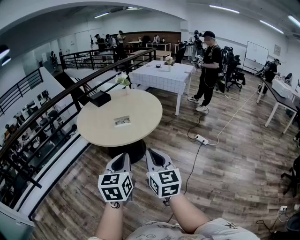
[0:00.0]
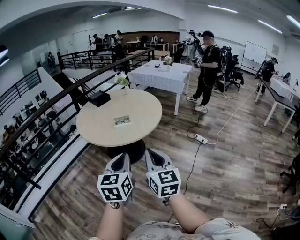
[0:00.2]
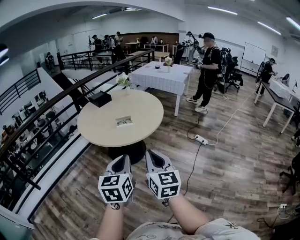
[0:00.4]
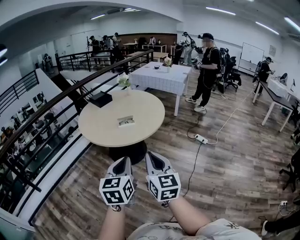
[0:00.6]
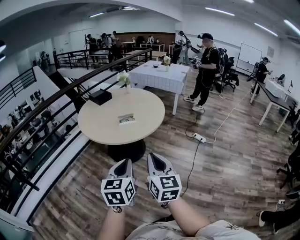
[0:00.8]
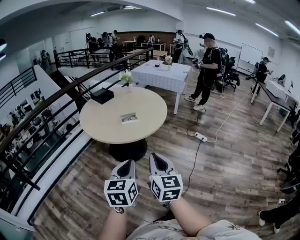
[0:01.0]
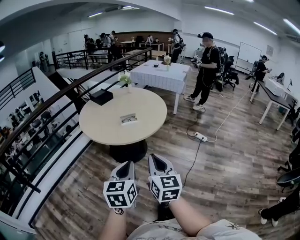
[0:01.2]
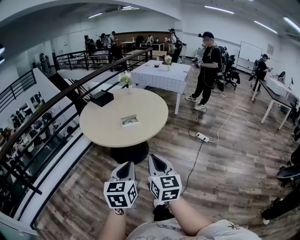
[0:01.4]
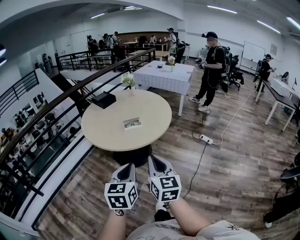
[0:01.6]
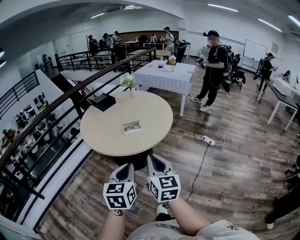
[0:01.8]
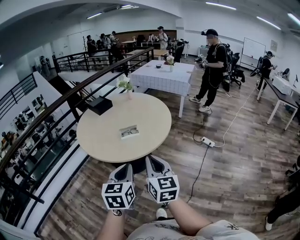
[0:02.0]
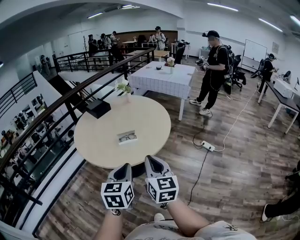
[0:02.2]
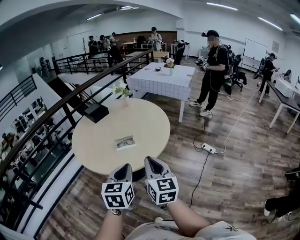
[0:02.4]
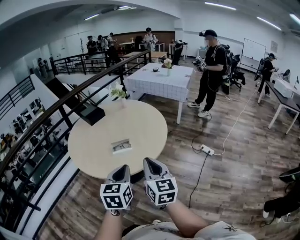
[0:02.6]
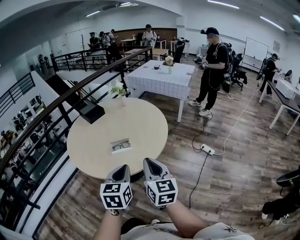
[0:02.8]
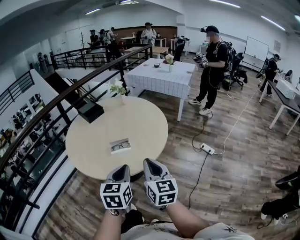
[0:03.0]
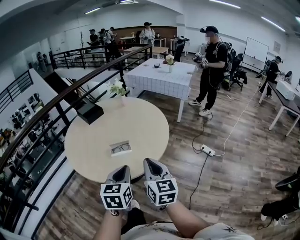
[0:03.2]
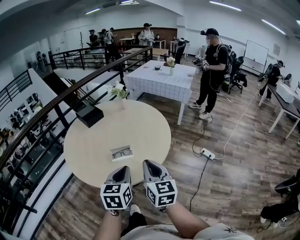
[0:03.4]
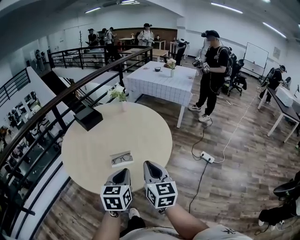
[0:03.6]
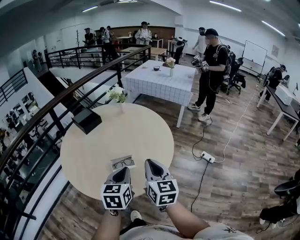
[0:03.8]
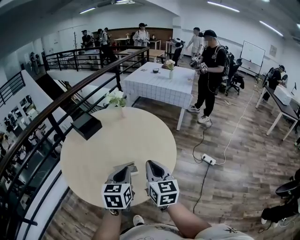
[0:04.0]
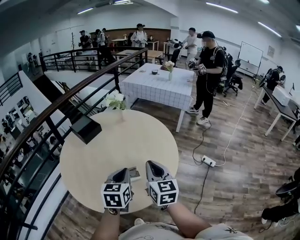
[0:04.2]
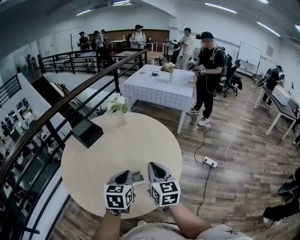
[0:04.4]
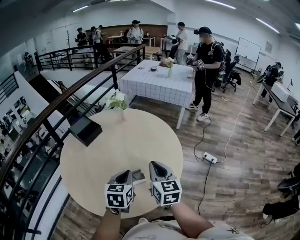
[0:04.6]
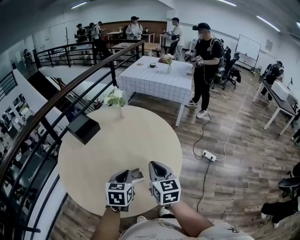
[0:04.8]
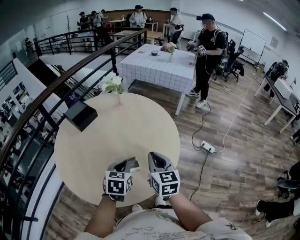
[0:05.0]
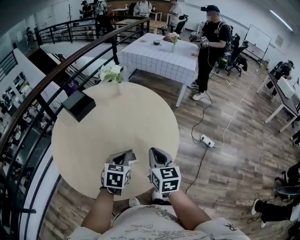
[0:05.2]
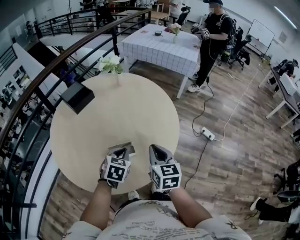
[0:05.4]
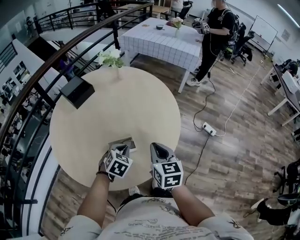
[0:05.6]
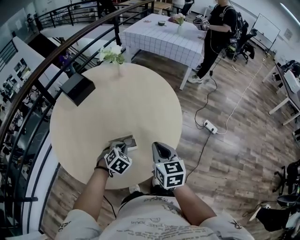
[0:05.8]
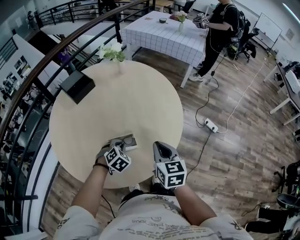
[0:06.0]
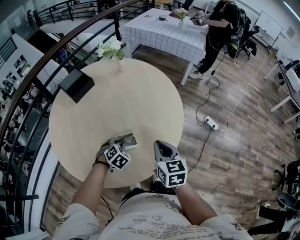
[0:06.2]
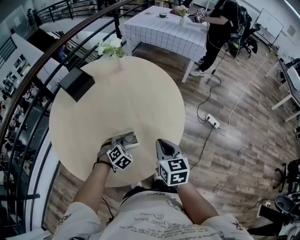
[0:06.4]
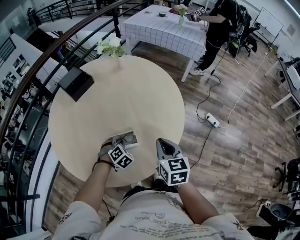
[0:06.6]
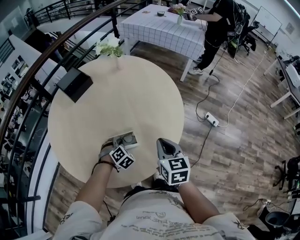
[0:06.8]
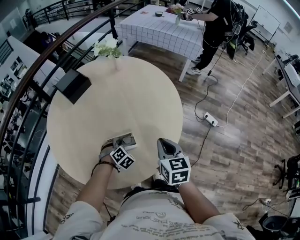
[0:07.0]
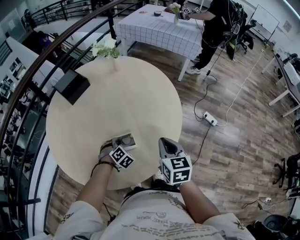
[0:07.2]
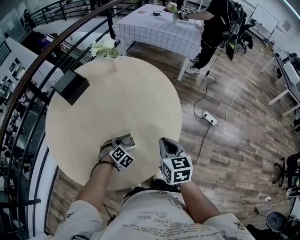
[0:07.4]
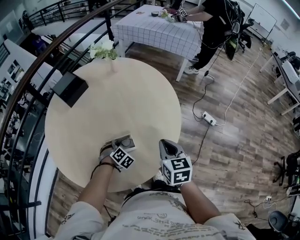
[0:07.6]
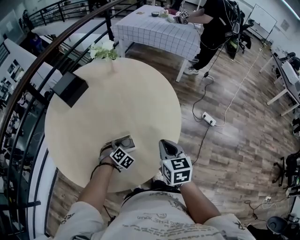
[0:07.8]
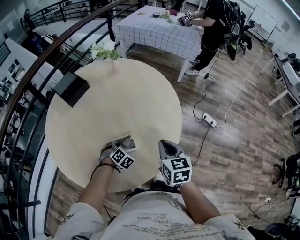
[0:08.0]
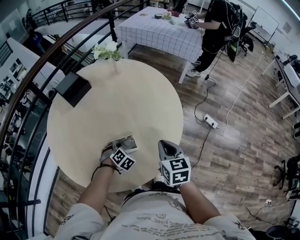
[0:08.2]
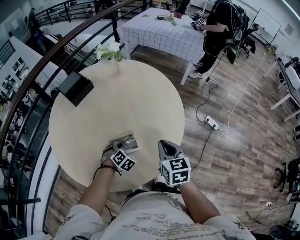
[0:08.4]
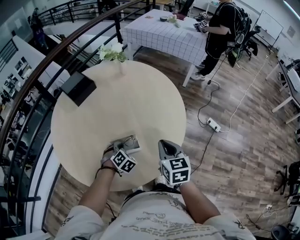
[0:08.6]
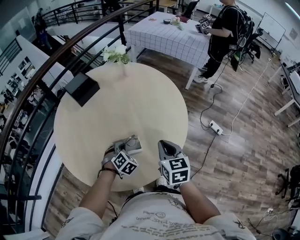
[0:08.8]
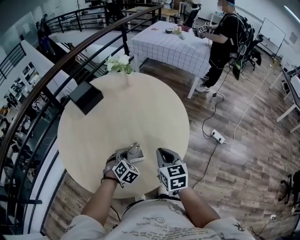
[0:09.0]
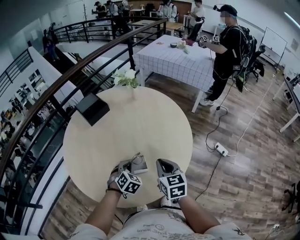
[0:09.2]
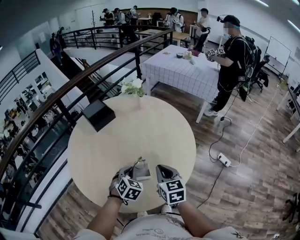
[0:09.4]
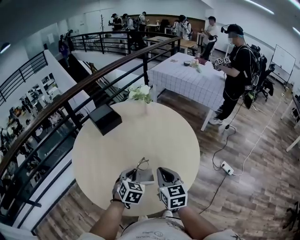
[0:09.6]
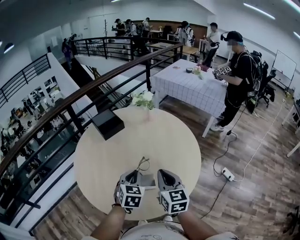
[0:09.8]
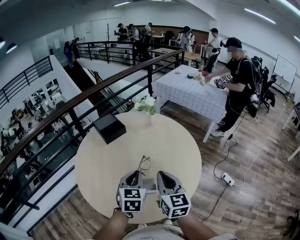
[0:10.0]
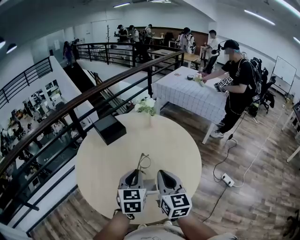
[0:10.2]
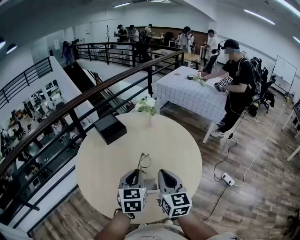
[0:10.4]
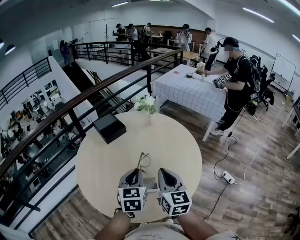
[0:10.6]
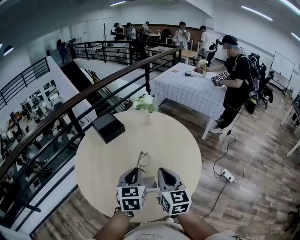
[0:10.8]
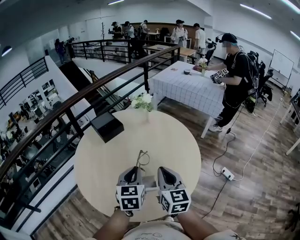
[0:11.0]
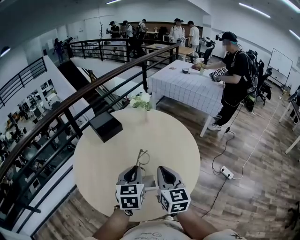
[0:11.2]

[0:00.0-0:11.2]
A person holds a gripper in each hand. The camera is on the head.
0:00.0 to 0:01.6: The left gripper is displaced to the left and downward by about 15 cm. The right gripper is displaced to the left by roughly 10 cm.
0:01.6 to 0:03.2: Both grippers move forward, roughly 30 cm.
0:03.2 to 0:04.8: The left gripper is displaced forward and to the left by about 25 cm, while the right gripper heads forward, covering roughly 25 cm.
0:04.8 to 0:06.4: The left gripper travels downward by some 20 cm, and twists some 40 degrees clockwise, seen from behind, while the right gripper goes approximately 10 cm downward and to the right.
0:06.4 to 0:08.0: The left gripper ends up approximately 5 cm from where it was.
0:08.0 to 0:09.6: The right gripper goes some 10 cm to the left and upward; the left gripper is displaced upward by about 20 cm, and changes its angle by about 40 degrees.
0:09.6 to 0:11.2: The right gripper shifts roughly 5 cm upward. The left gripper travels upward by some 10 cm, and swivels roughly 30 degrees.

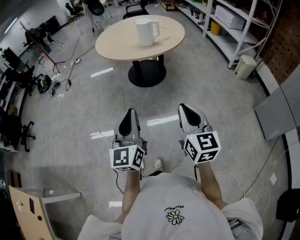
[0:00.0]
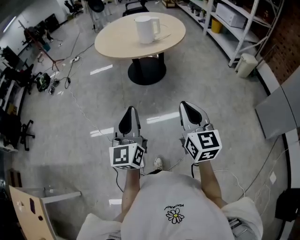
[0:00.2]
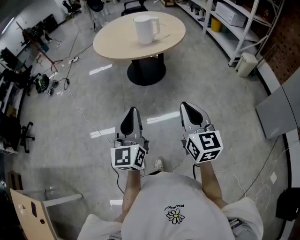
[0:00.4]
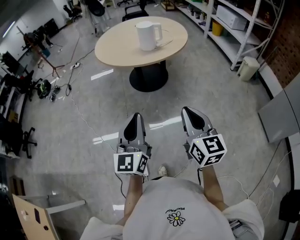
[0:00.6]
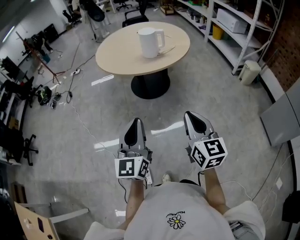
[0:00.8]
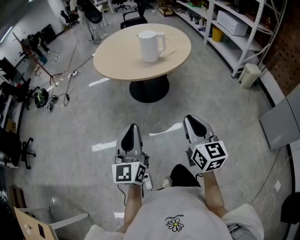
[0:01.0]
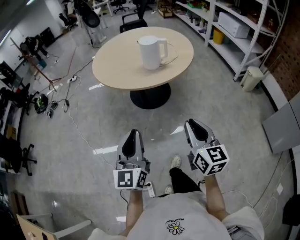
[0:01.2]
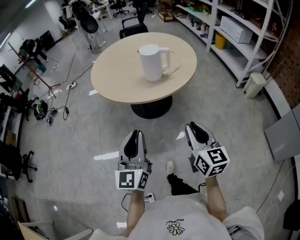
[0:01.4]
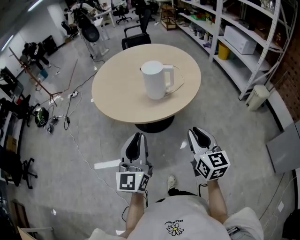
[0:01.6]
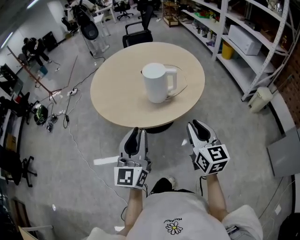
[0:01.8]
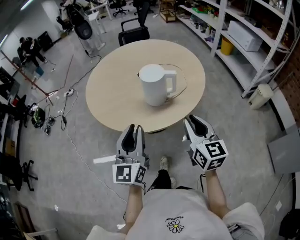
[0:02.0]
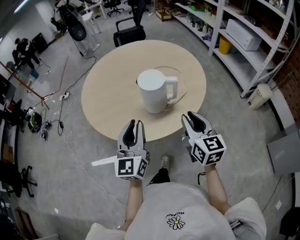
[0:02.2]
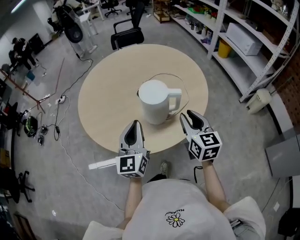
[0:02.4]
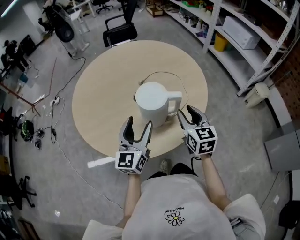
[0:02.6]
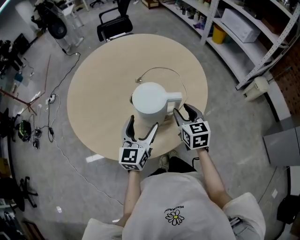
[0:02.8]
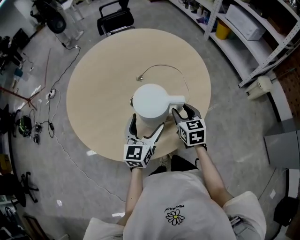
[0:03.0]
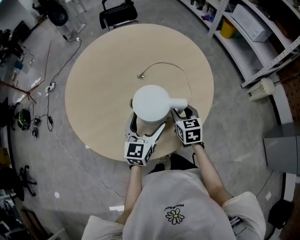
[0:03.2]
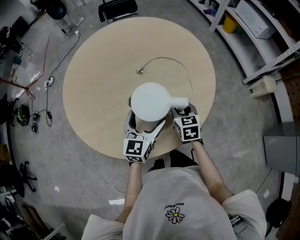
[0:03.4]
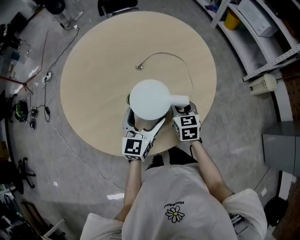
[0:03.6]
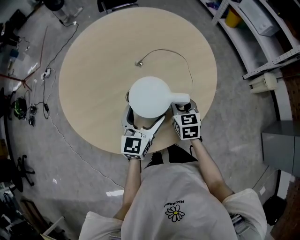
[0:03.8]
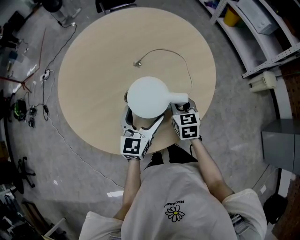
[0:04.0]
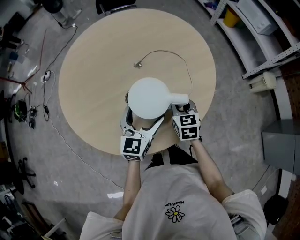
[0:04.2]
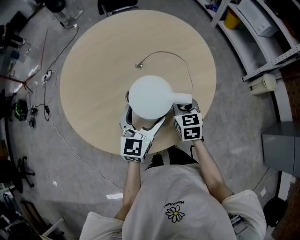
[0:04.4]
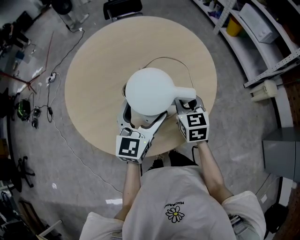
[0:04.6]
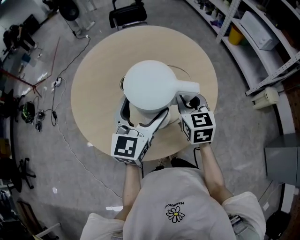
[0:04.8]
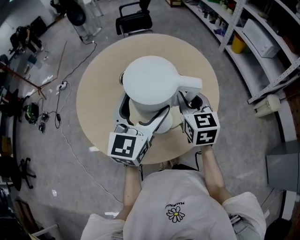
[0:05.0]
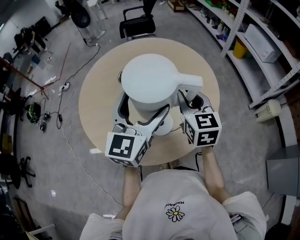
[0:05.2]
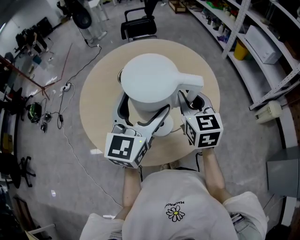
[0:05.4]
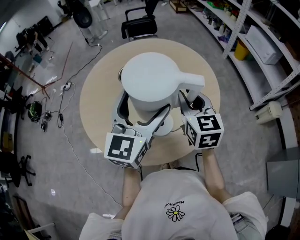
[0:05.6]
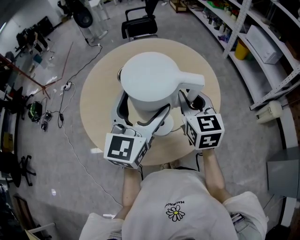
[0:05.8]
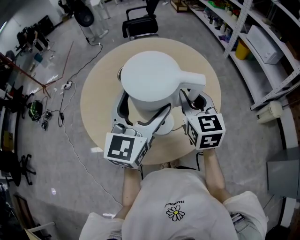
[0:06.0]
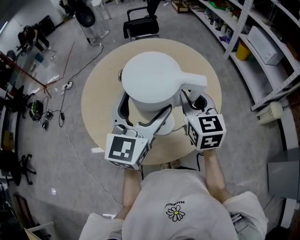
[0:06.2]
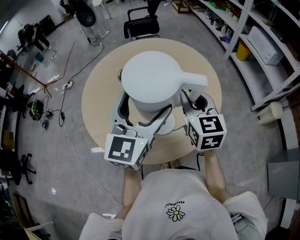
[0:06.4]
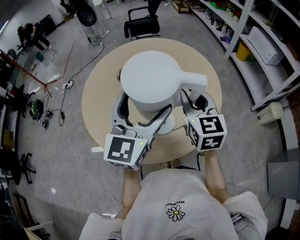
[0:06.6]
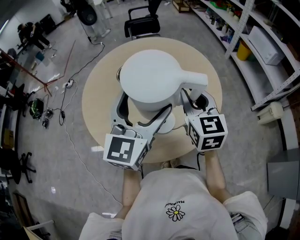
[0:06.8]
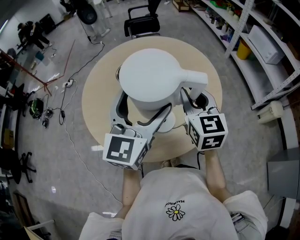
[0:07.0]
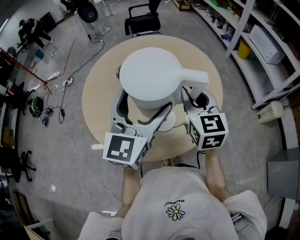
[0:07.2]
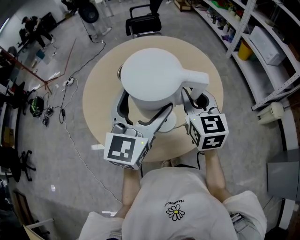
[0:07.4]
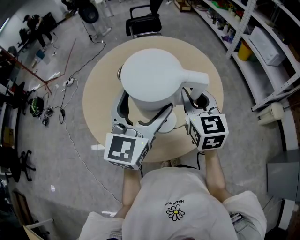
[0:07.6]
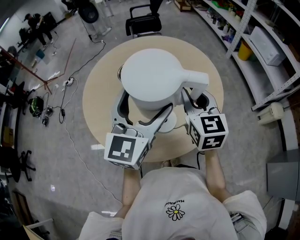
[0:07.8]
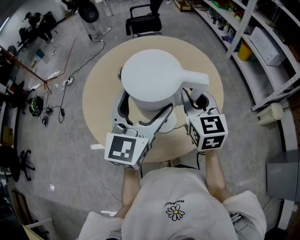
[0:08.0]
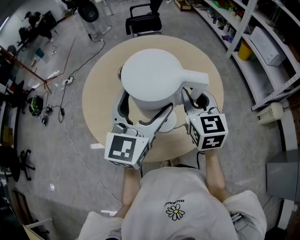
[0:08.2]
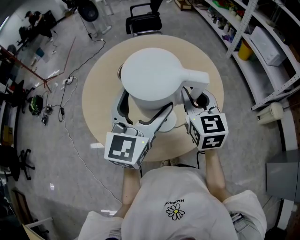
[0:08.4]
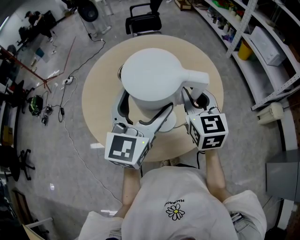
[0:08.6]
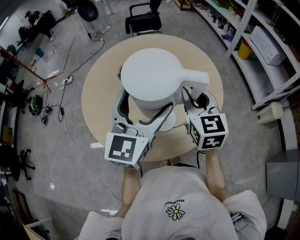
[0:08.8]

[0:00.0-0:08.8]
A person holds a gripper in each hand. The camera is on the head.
0:00.0 to 0:01.4: The two grippers go some 35 cm forward.
0:01.4 to 0:03.0: The two grippers travel together, forward, roughly 50 cm. The right gripper rotates some 20 degrees, and opens up. Meanwhile the left gripper swivels roughly 20 degrees, and opens its fingers.
0:03.0 to 0:04.4: The grippers stay close to where they were, moving slightly.
0:04.4 to 0:05.8: The grippers both shift upward by approximately 20 cm.
0:05.8 to 0:07.4: There are only small adjustments of the grippers.
0:07.4 to 0:08.8: Both grippers stay about where they are.

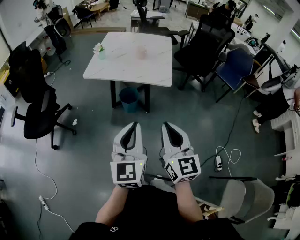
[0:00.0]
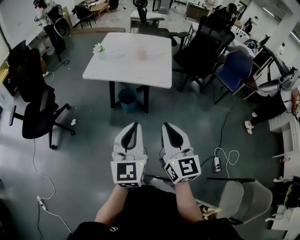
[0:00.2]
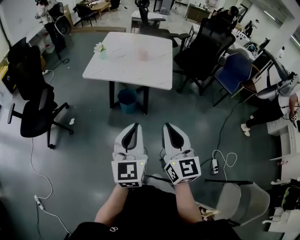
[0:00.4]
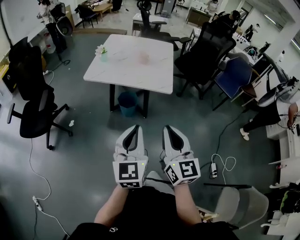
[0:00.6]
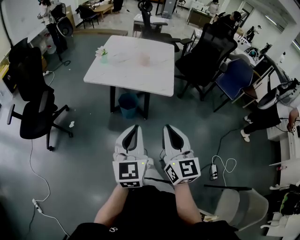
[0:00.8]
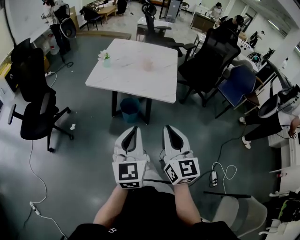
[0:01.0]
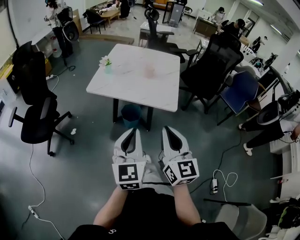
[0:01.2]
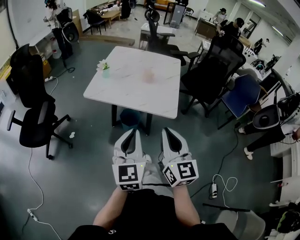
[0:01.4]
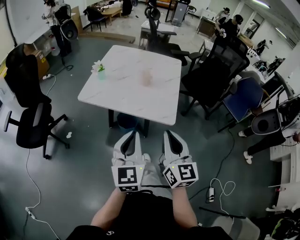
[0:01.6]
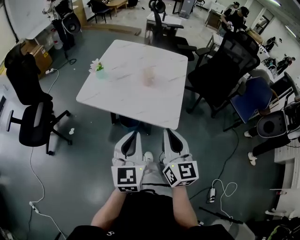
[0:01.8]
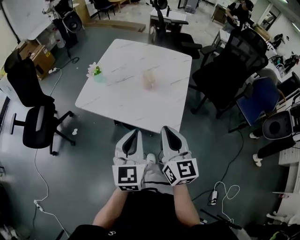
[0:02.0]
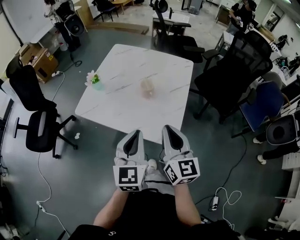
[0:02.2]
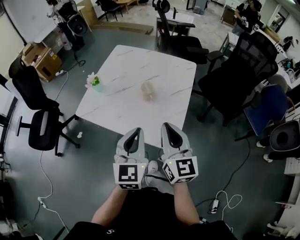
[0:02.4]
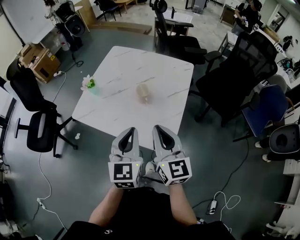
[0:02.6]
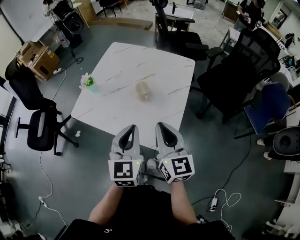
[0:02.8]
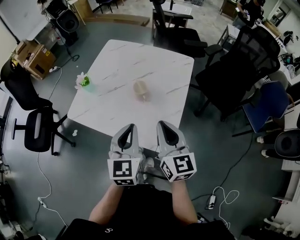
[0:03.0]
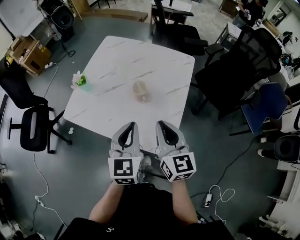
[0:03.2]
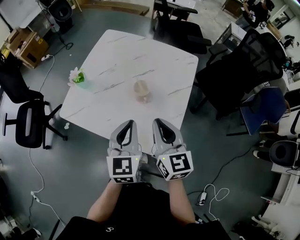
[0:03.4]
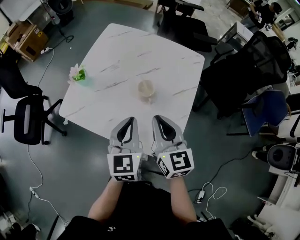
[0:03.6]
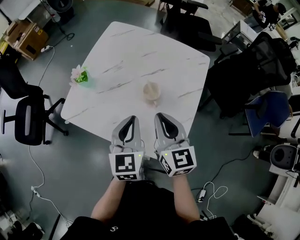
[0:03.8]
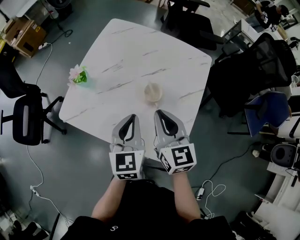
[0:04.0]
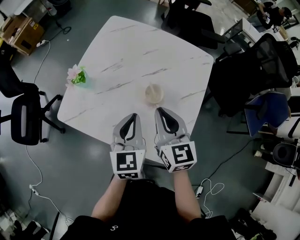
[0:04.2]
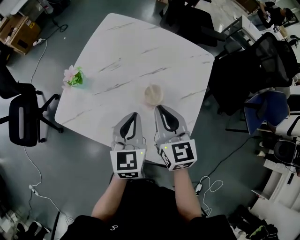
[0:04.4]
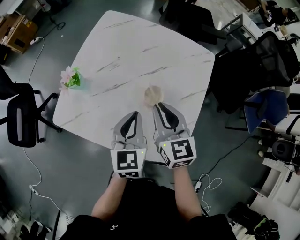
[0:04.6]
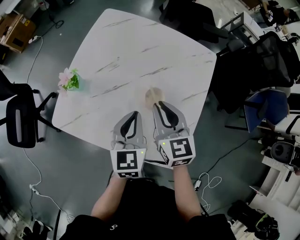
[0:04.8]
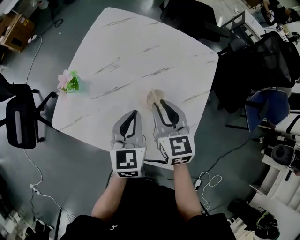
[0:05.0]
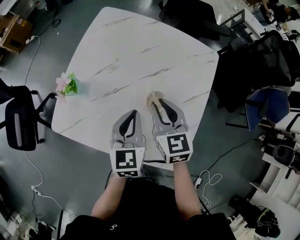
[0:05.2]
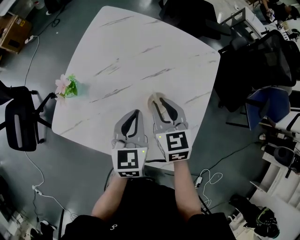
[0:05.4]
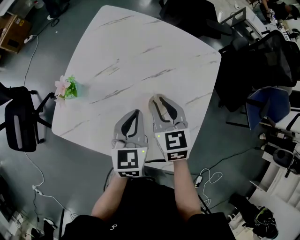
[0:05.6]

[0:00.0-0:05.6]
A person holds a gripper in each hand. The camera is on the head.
0:00.0 to 0:01.4: Both grippers move forward, approximately 15 cm.
0:01.4 to 0:02.8: The two grippers go roughly 30 cm forward and to the right.
0:02.8 to 0:04.2: The grippers both shift forward and downward by roughly 20 cm.
0:04.2 to 0:05.6: Both grippers travel together forward and downward, approximately 10 cm.
